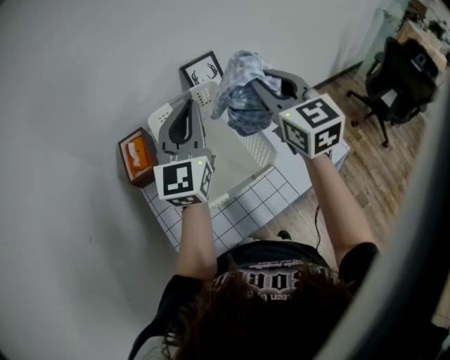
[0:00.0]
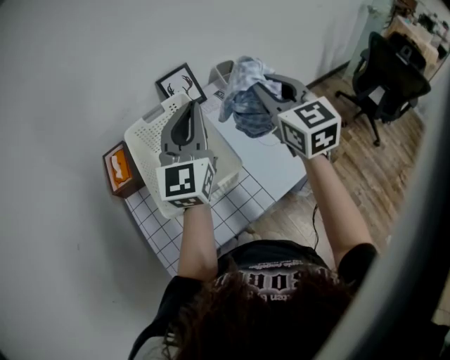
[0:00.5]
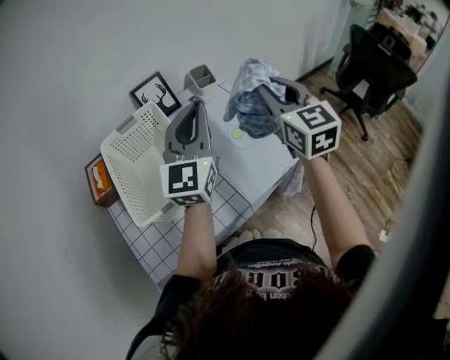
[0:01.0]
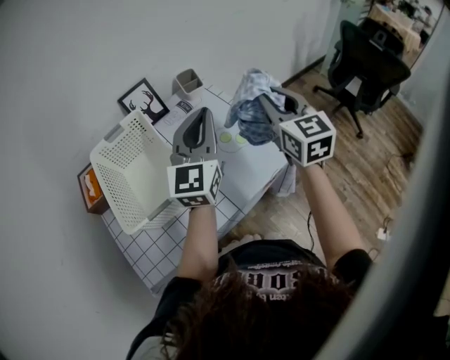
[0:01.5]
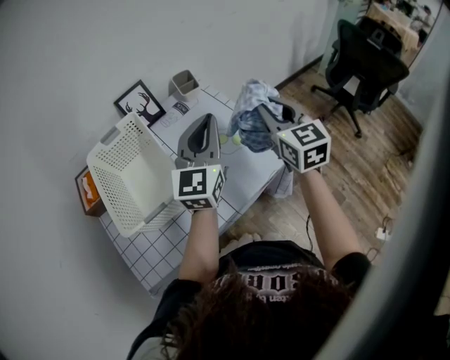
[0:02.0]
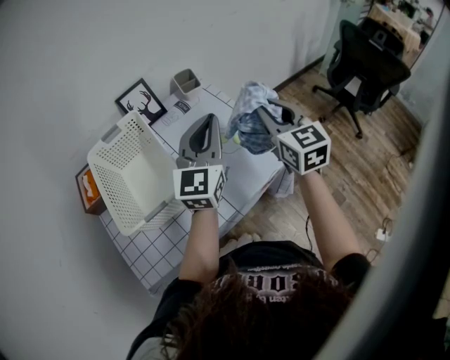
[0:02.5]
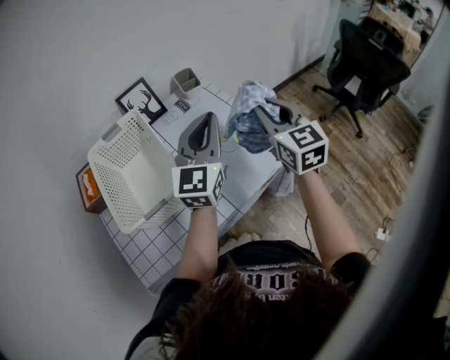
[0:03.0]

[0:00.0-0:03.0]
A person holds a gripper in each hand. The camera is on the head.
0:00.0 to 0:01.5: The two grippers go approximately 35 cm to the right.
0:01.5 to 0:03.0: The grippers move only a little.

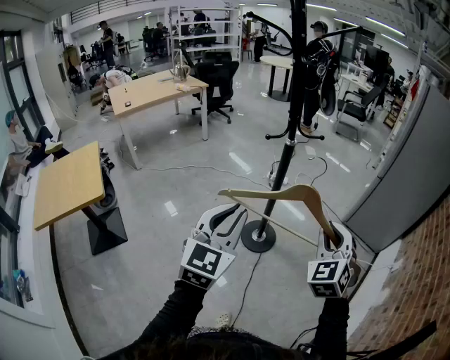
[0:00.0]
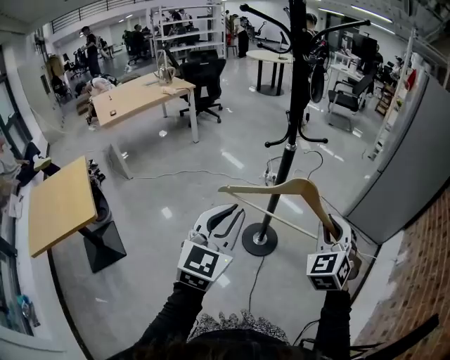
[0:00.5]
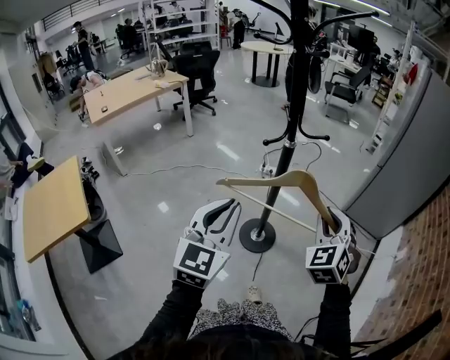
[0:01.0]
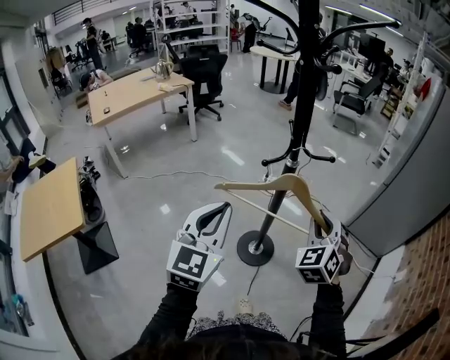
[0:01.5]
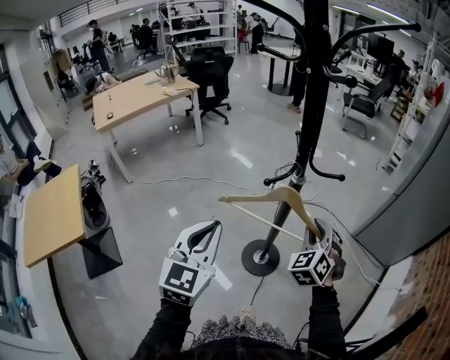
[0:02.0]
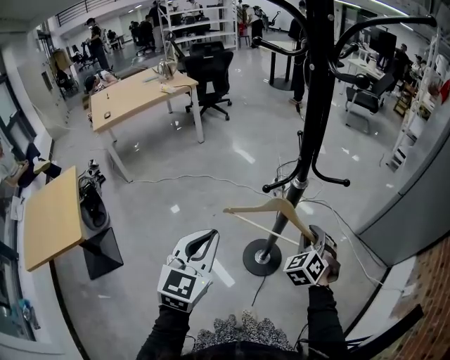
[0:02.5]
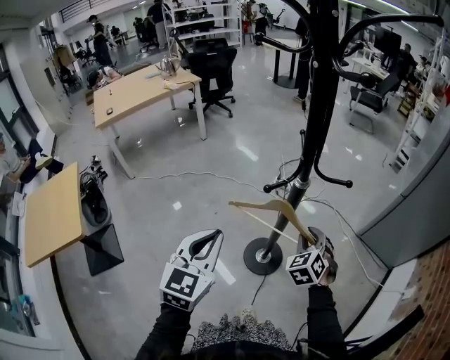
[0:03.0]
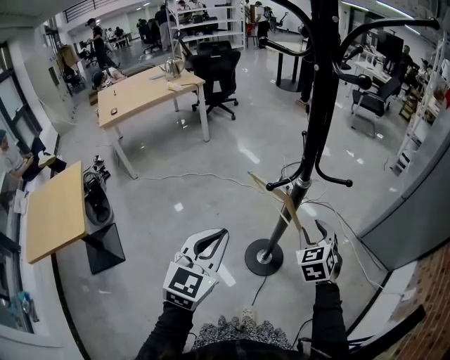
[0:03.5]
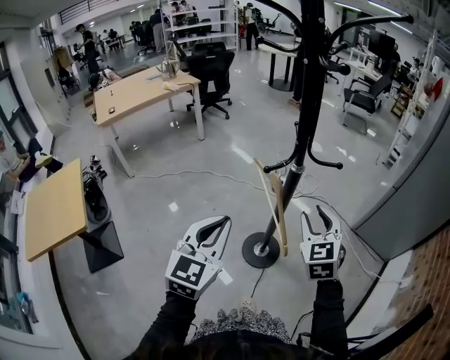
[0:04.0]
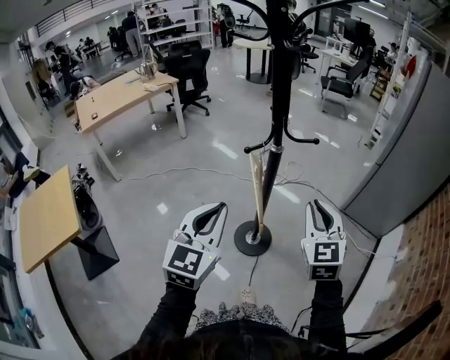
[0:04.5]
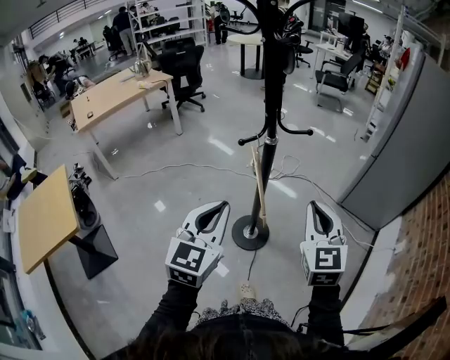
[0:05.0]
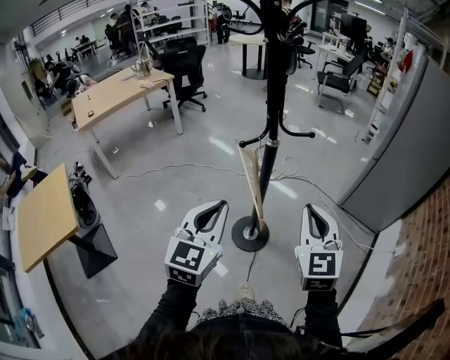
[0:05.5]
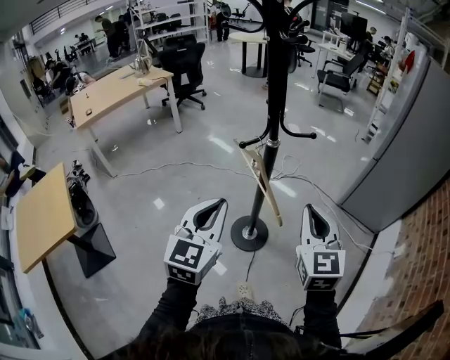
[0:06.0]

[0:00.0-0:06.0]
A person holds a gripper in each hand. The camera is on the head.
0:00.0 to 0:02.0: Both grippers move forward and to the left, roughly 25 cm.
0:02.0 to 0:04.0: The right gripper travels downward and back again, roughly 10 cm each way, and swivels some 30 degrees.
0:04.0 to 0:06.0: The right gripper goes some 10 cm backward and upward, and closes up.

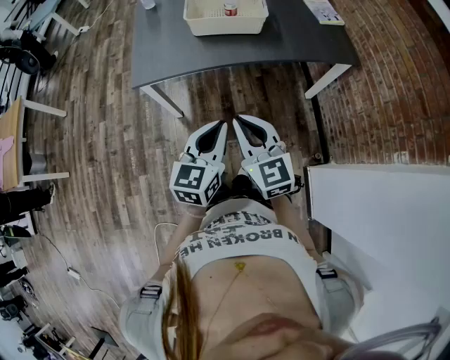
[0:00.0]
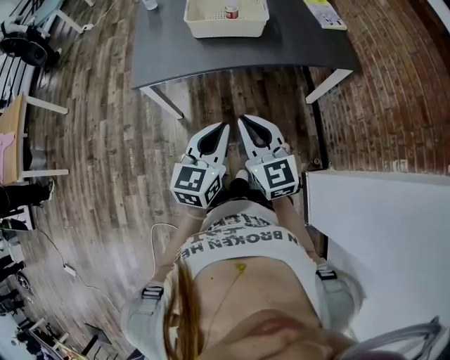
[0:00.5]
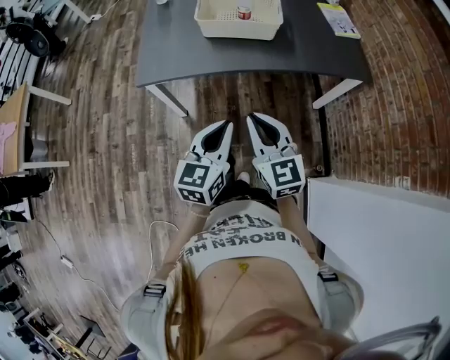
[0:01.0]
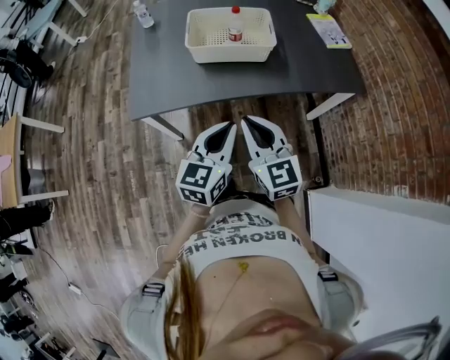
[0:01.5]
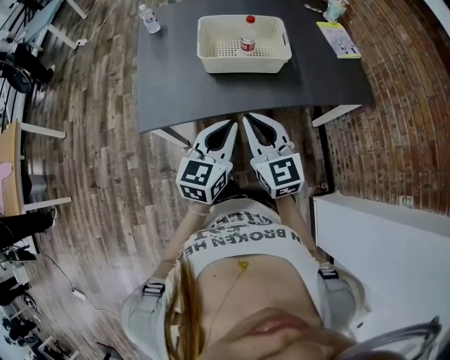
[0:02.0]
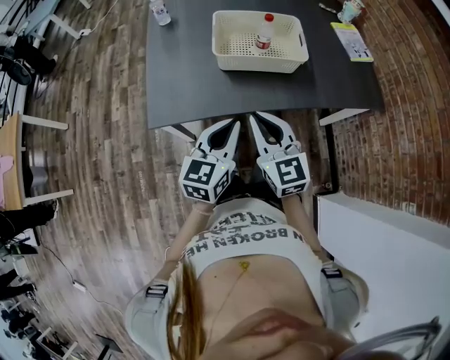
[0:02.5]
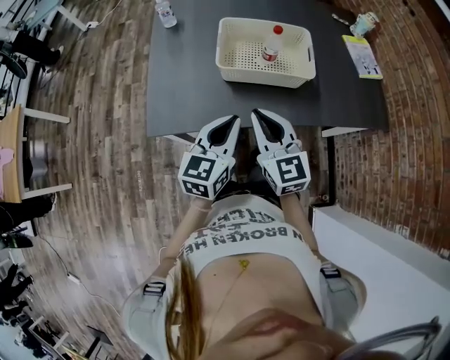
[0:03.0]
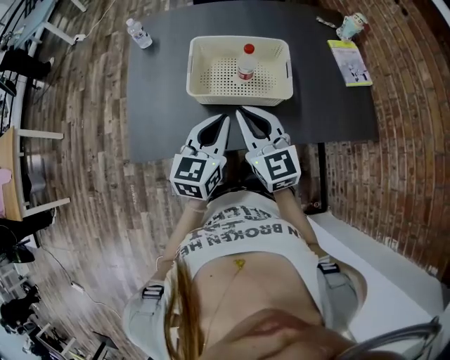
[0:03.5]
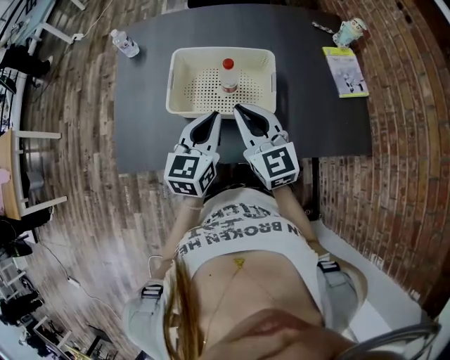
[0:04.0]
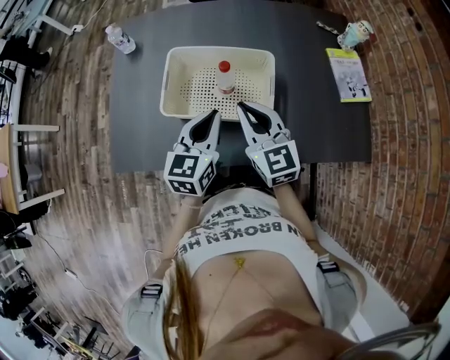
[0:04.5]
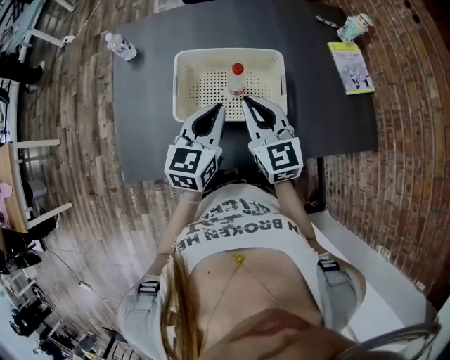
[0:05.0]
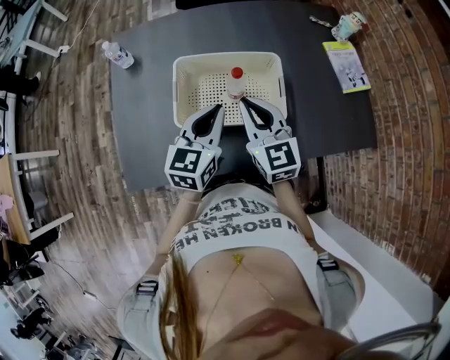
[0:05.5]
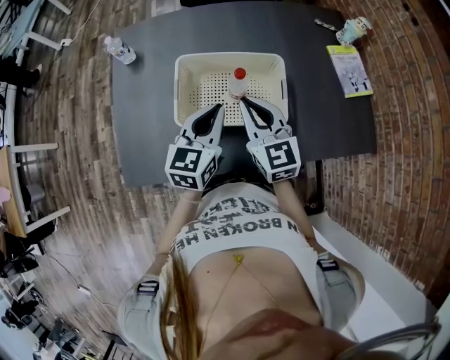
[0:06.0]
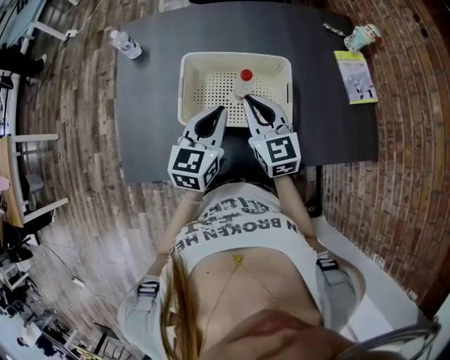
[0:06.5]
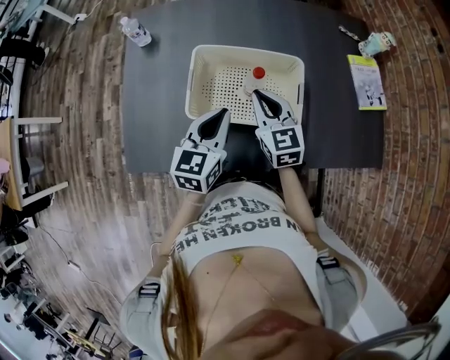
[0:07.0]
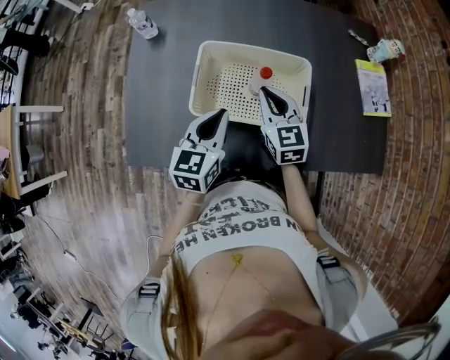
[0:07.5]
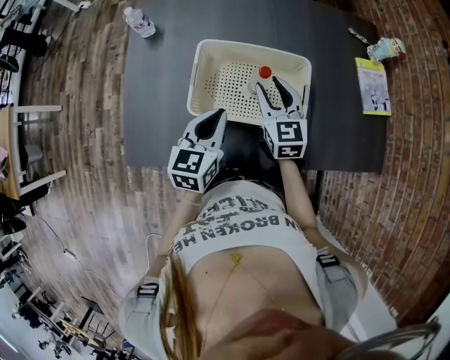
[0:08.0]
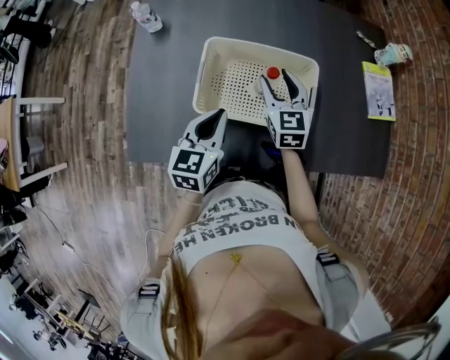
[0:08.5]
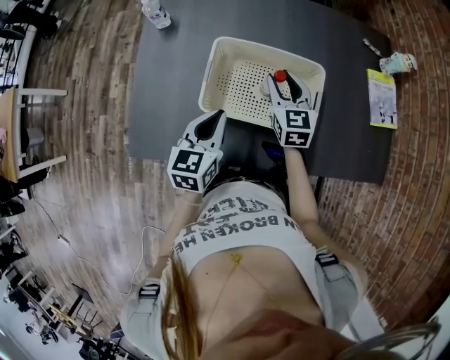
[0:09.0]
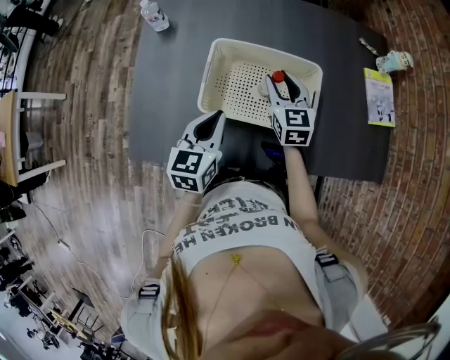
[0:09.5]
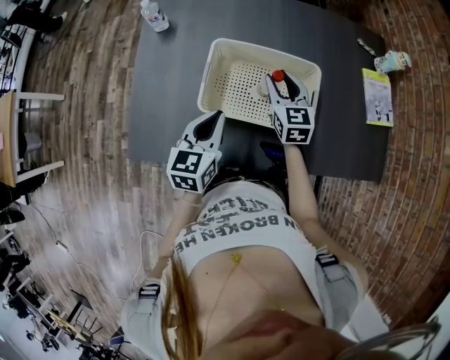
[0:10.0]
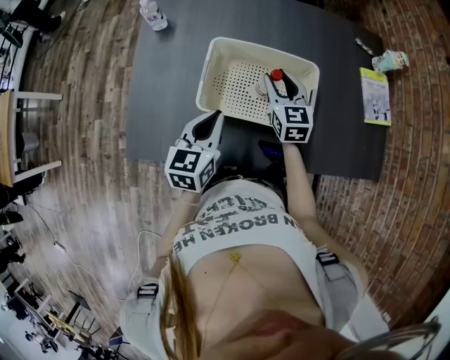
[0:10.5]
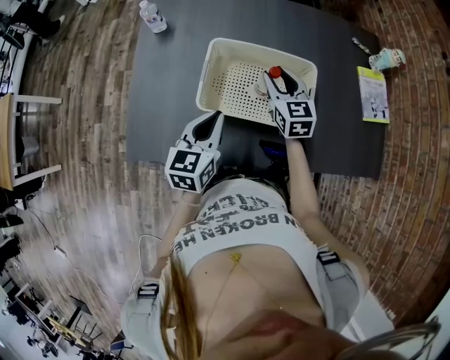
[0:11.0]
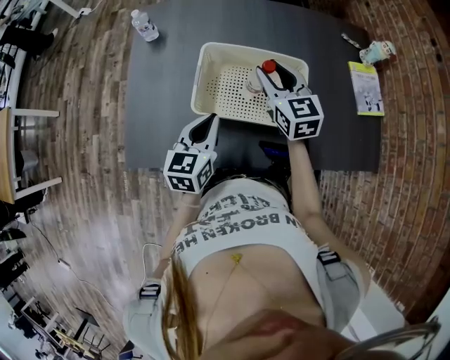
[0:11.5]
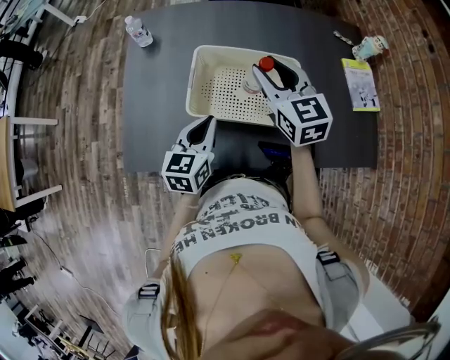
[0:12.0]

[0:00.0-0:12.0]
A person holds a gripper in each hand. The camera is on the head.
0:00.0 to 0:02.0: The grippers both shift forward by about 25 cm.
0:02.0 to 0:04.0: The grippers both shift forward by roughly 25 cm.
0:04.0 to 0:06.0: The grippers both shift forward by about 5 cm.
0:06.0 to 0:08.0: The left gripper moves approximately 5 cm. The right gripper travels forward and downward by approximately 10 cm, and opens its fingers.
0:08.0 to 0:10.0: The grippers move only a little.
0:10.0 to 0:12.0: The right gripper shifts roughly 15 cm upward.

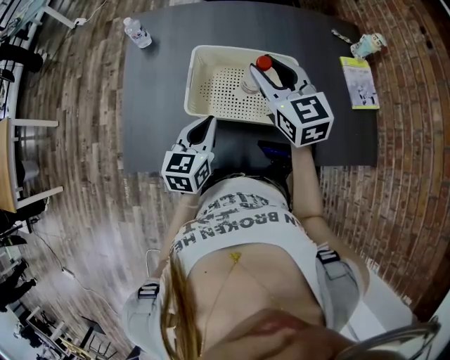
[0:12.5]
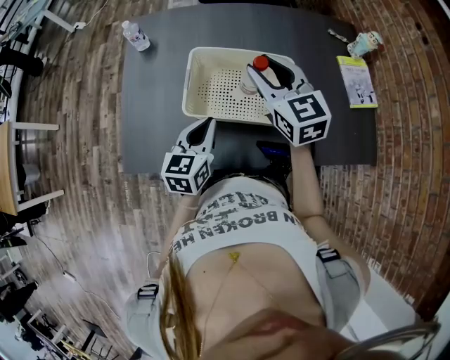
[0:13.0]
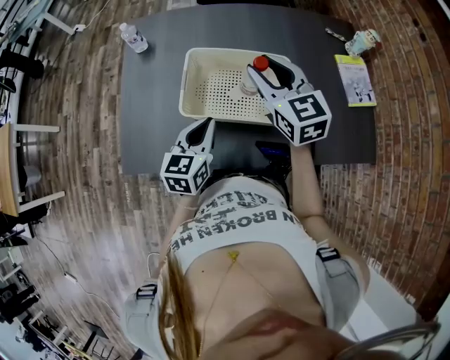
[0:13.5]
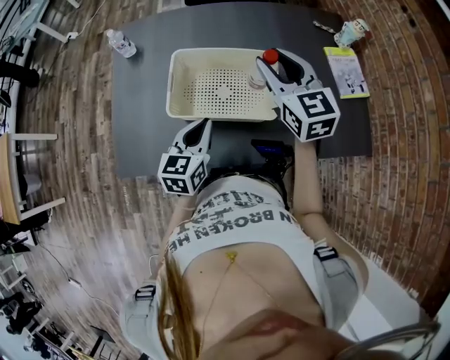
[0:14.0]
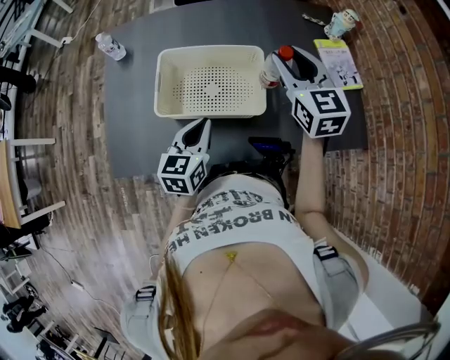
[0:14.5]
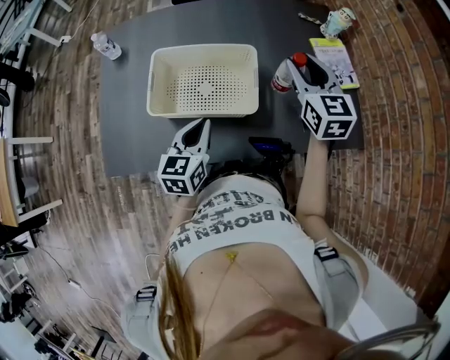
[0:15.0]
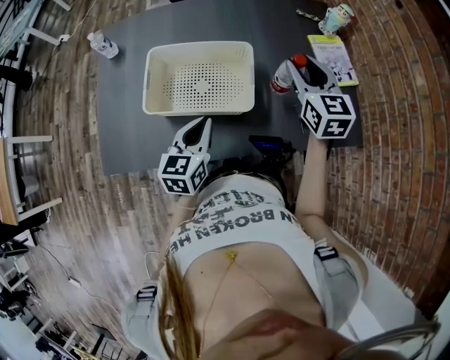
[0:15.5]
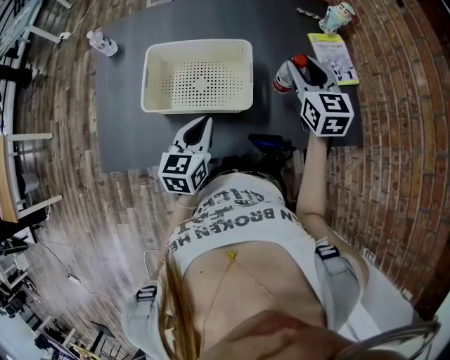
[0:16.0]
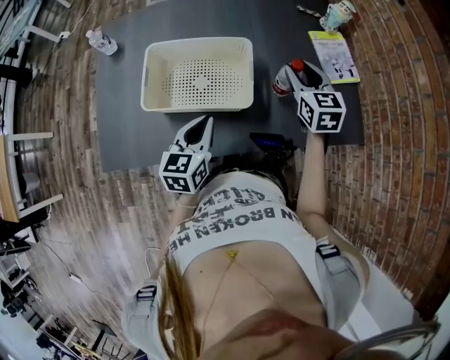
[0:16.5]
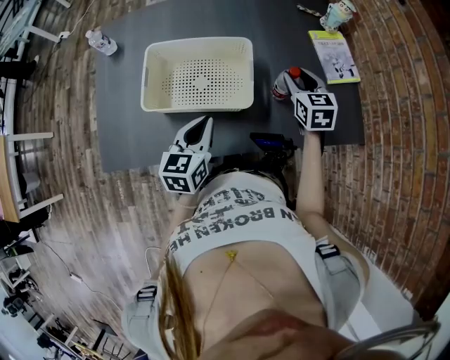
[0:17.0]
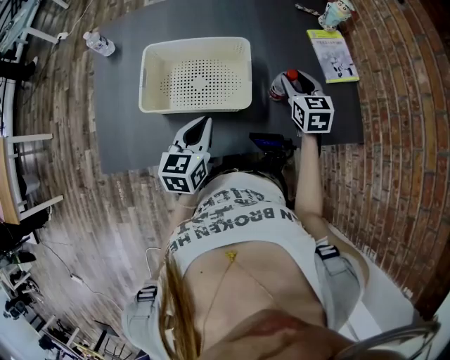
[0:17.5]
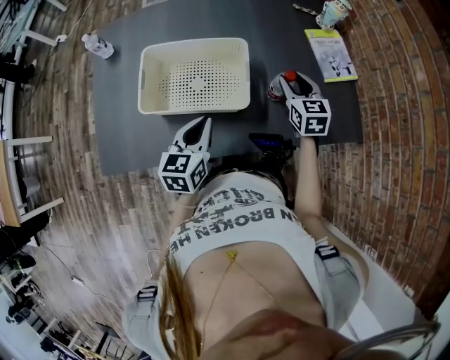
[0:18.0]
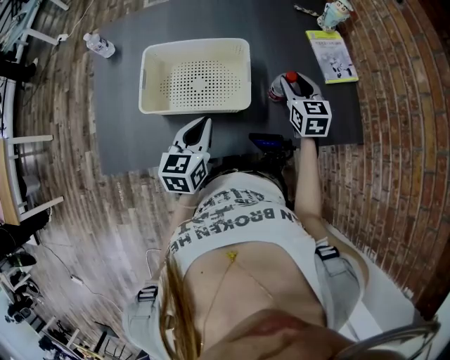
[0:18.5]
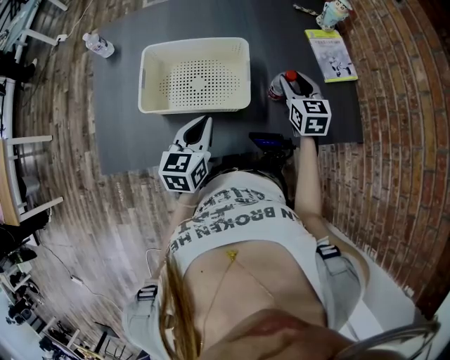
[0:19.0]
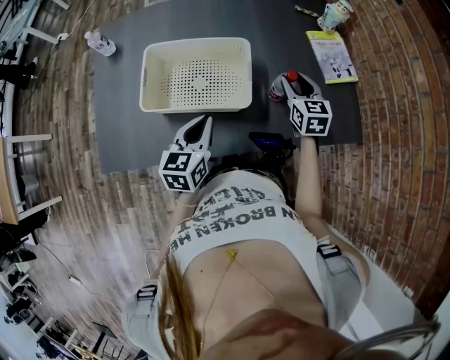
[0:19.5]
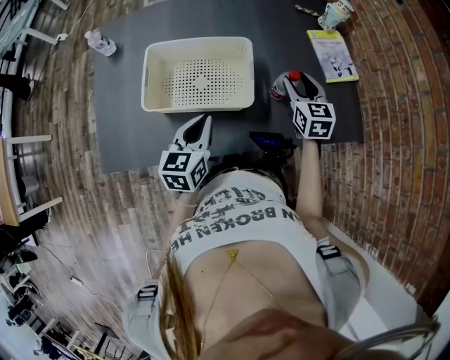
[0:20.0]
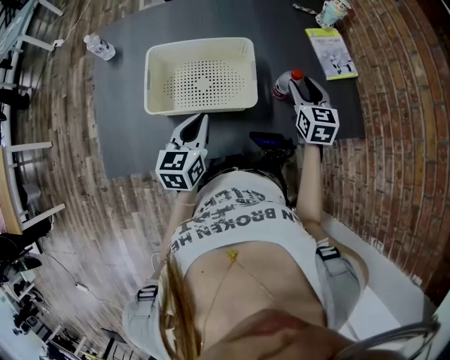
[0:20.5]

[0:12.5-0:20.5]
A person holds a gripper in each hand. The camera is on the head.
0:12.5 to 0:14.5: The right gripper is displaced to the right by about 15 cm; the left gripper travels to the right by about 10 cm.
0:14.5 to 0:16.5: The left gripper heads to the right, covering some 5 cm. The right gripper shifts about 15 cm downward and to the right.
0:16.5 to 0:18.5: The right gripper is displaced downward by approximately 5 cm.
0:18.5 to 0:20.5: The grippers stay close to where they were, moving slightly.
